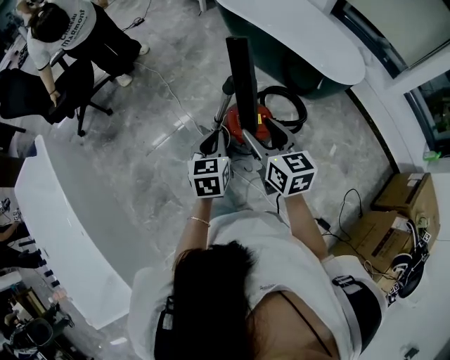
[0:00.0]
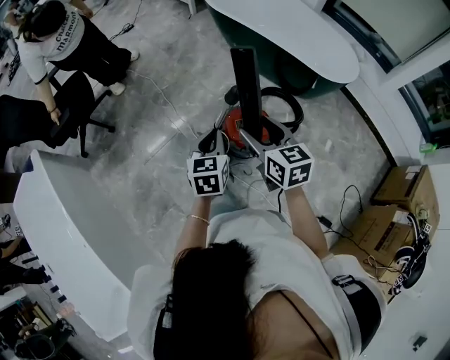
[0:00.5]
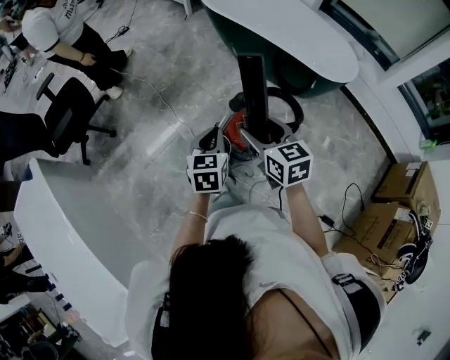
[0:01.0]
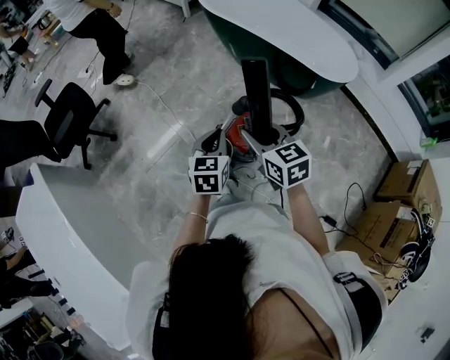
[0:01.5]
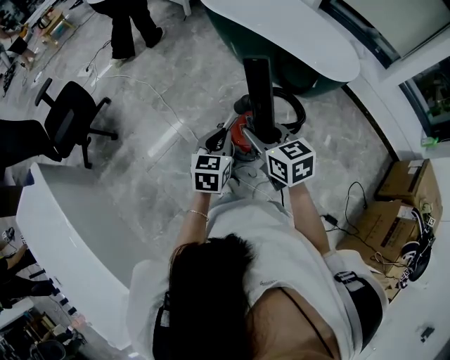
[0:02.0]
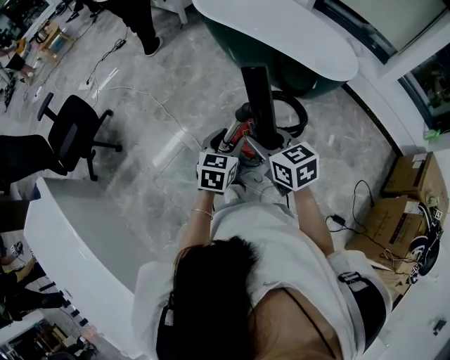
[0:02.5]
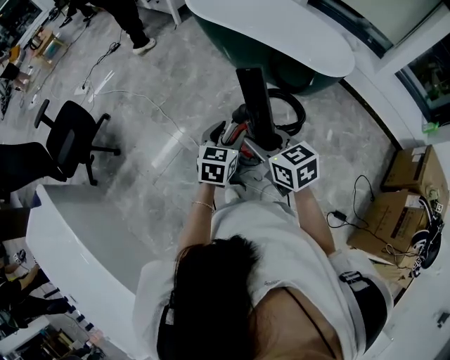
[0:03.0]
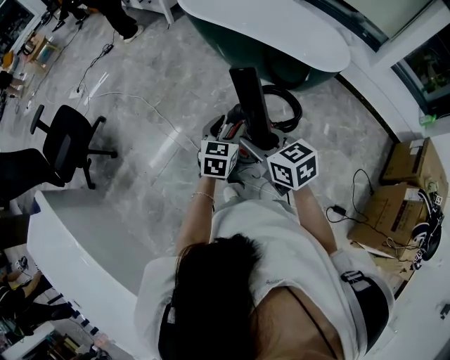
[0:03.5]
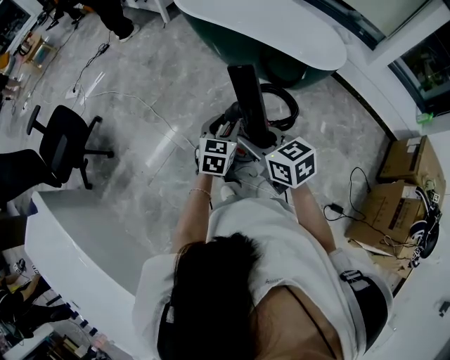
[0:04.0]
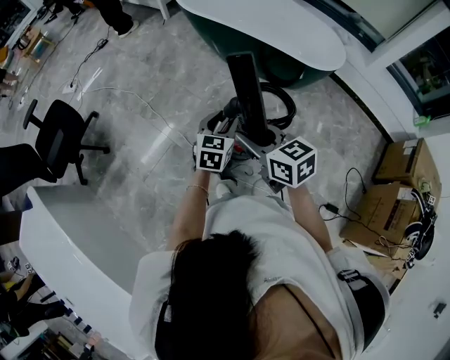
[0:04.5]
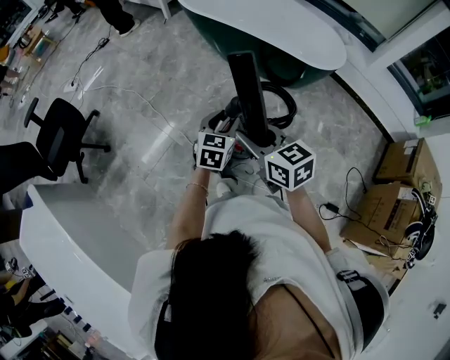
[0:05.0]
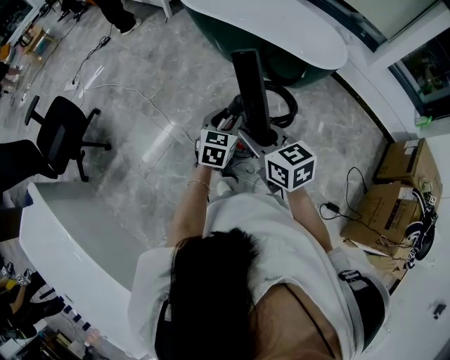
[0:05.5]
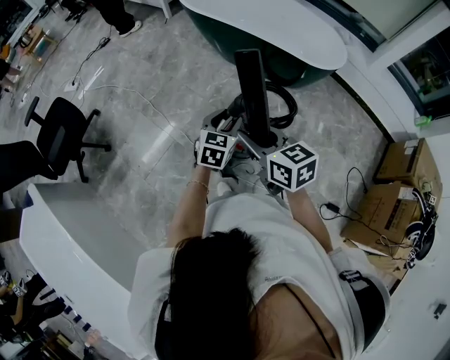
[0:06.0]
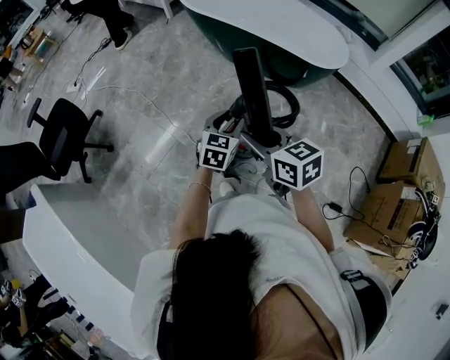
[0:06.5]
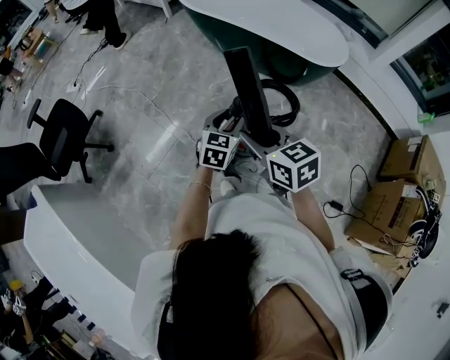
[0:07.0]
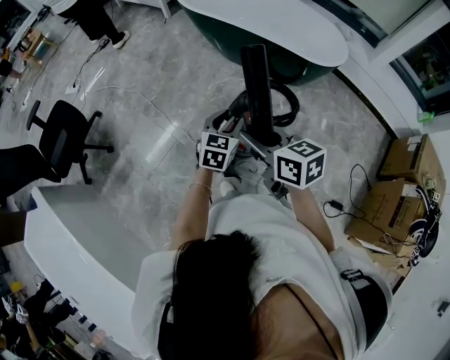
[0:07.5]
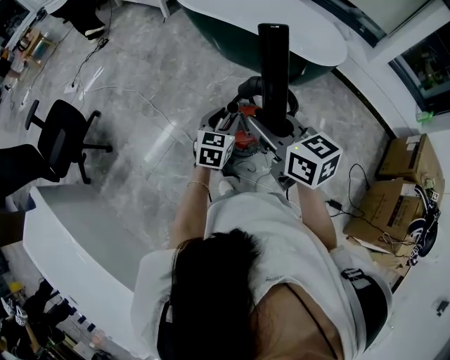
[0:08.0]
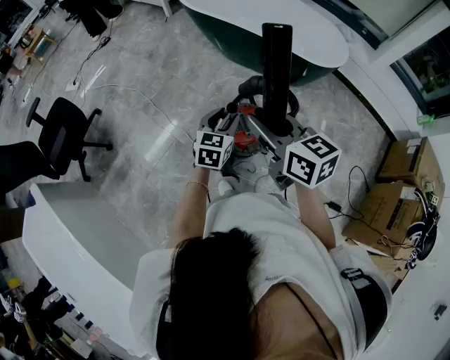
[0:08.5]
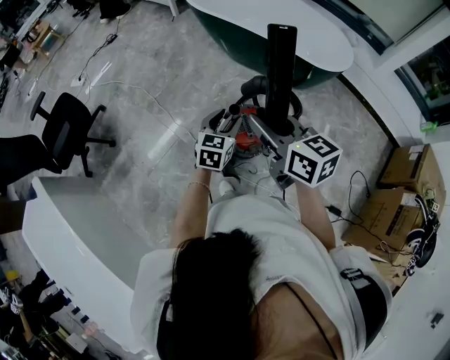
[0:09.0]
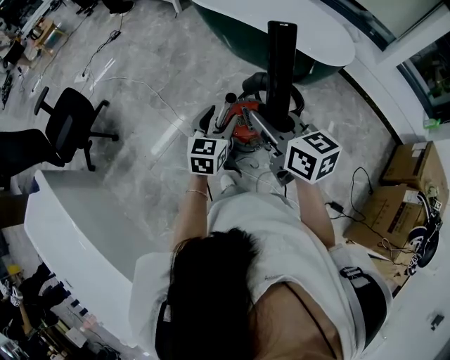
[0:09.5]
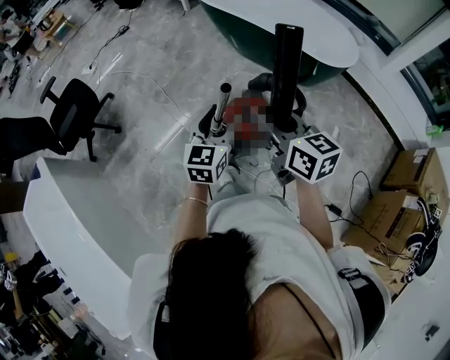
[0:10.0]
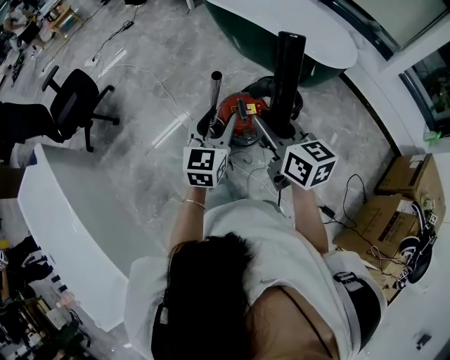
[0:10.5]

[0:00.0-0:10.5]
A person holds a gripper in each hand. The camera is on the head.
0:00.0 to 0:02.0: Both grippers move forward, approximately 5 cm. The right gripper closes its fingers.
0:02.0 to 0:04.0: The left gripper heads forward and to the right, covering approximately 10 cm, and opens its fingers.
0:04.0 to 0:06.5: There are only small adjustments of the grippers.
0:06.5 to 0:08.5: The right gripper heads upward, covering approximately 5 cm.
0:08.5 to 0:10.5: The right gripper heads backward and to the right, covering roughly 15 cm. Meanwhile the left gripper is displaced backward and upward by approximately 20 cm, and changes its angle by approximately 20 degrees.

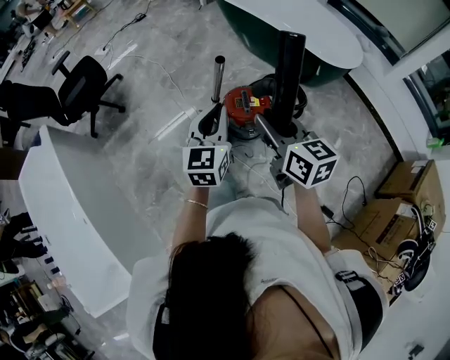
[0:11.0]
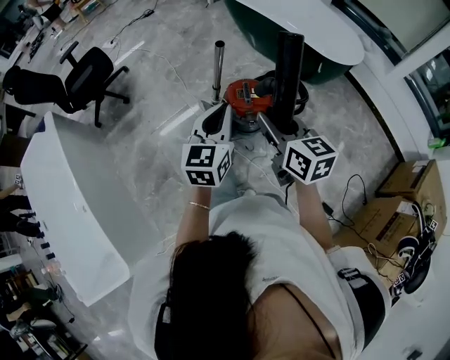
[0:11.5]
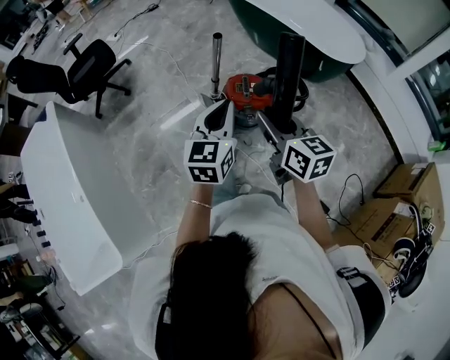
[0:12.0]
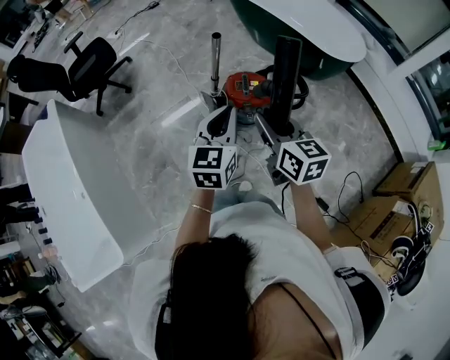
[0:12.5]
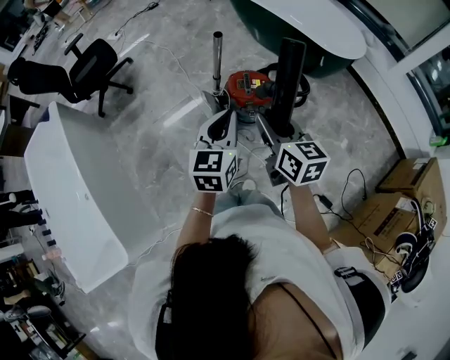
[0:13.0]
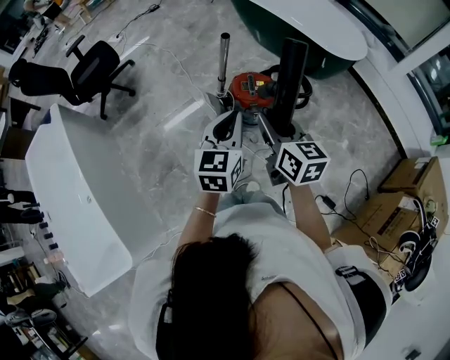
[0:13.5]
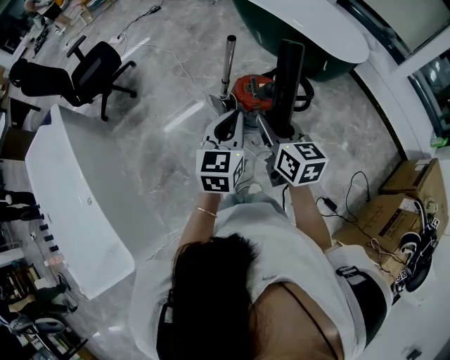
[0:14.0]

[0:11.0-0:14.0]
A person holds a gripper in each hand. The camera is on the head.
0:11.0 to 0:12.5: The two grippers go roughly 10 cm backward.
0:12.5 to 0:14.0: The grippers move only a little.

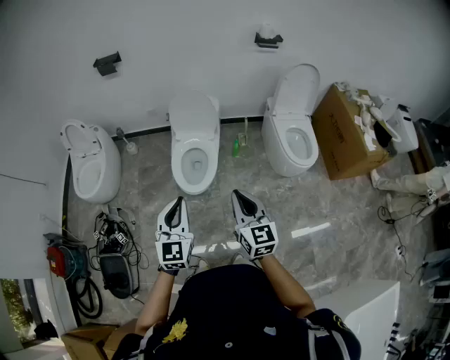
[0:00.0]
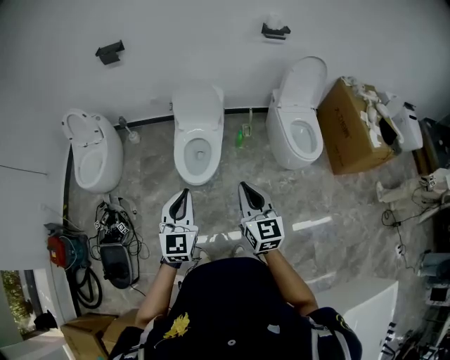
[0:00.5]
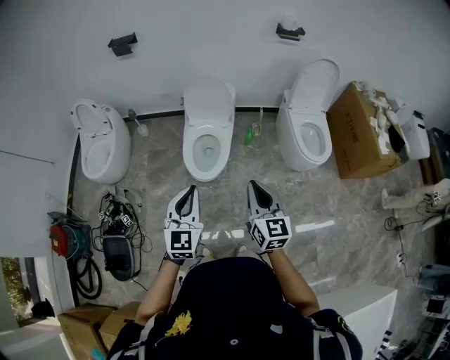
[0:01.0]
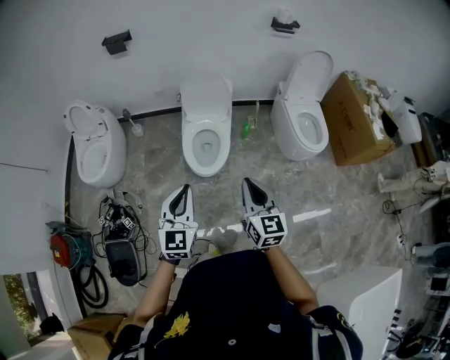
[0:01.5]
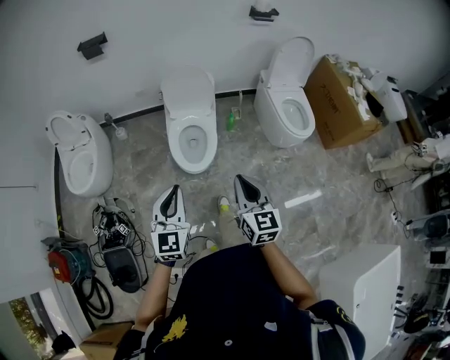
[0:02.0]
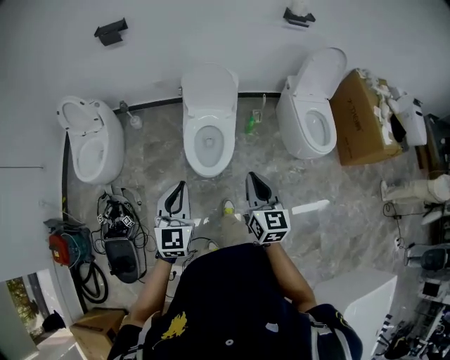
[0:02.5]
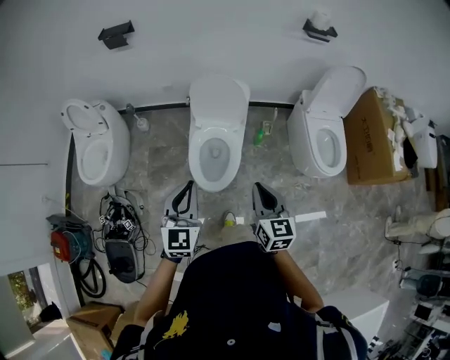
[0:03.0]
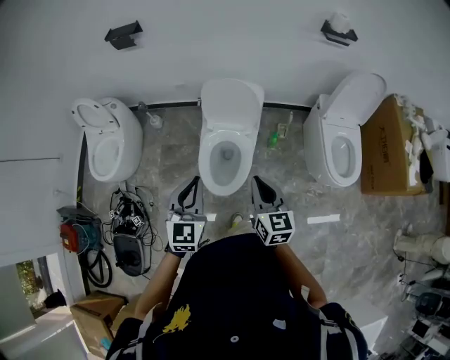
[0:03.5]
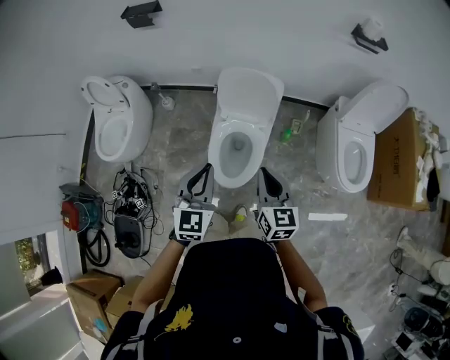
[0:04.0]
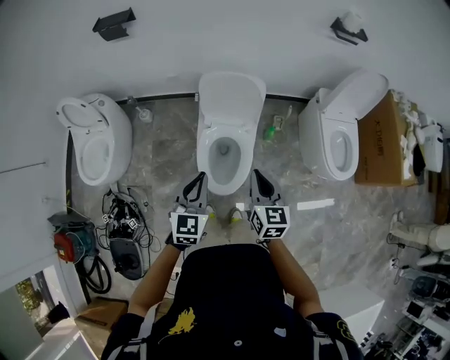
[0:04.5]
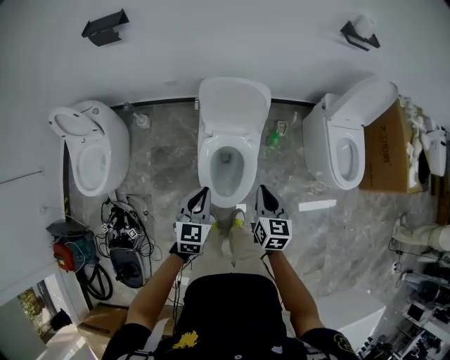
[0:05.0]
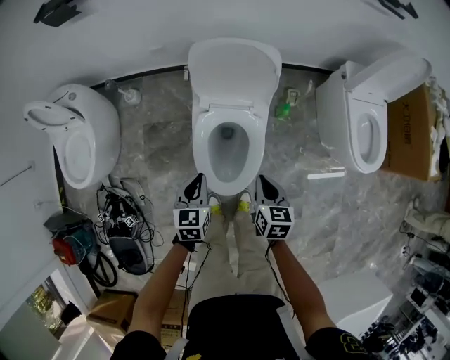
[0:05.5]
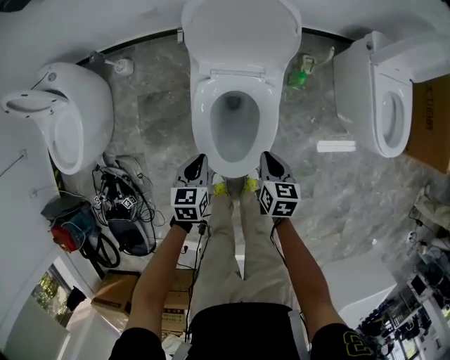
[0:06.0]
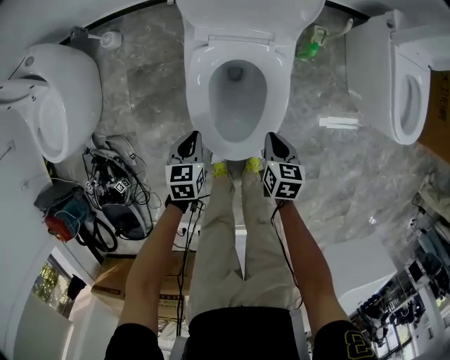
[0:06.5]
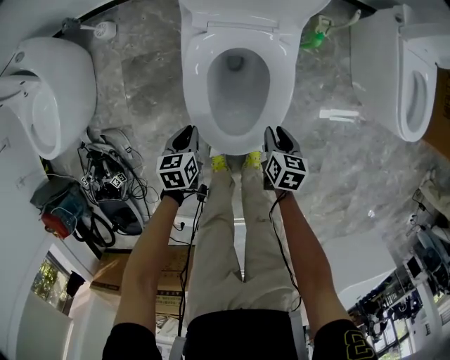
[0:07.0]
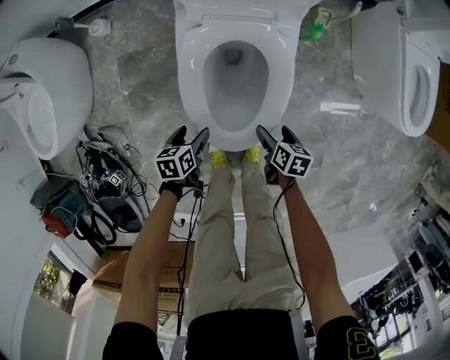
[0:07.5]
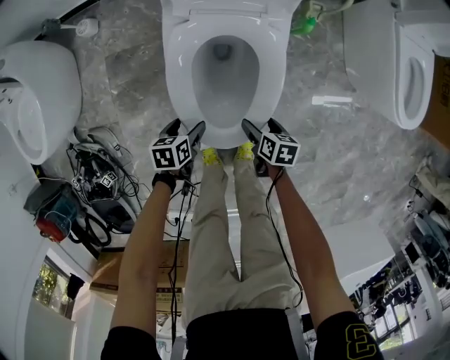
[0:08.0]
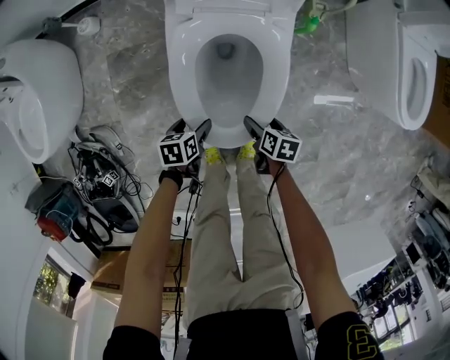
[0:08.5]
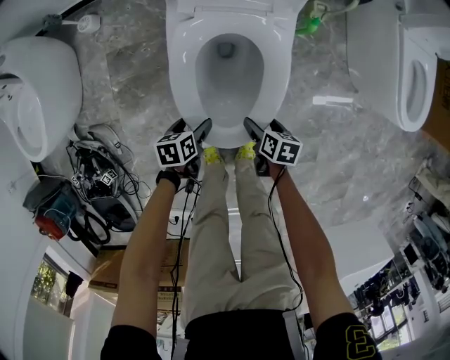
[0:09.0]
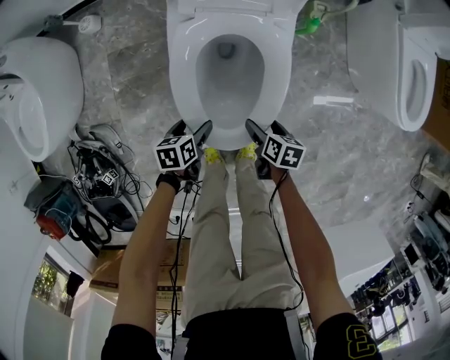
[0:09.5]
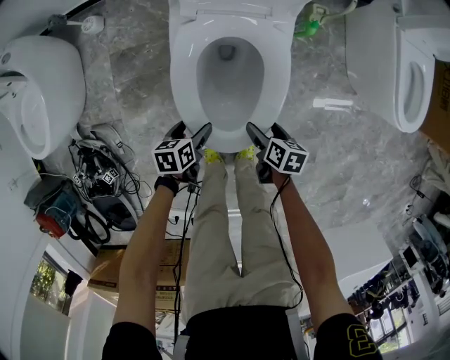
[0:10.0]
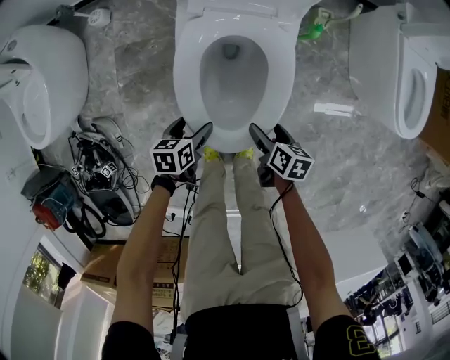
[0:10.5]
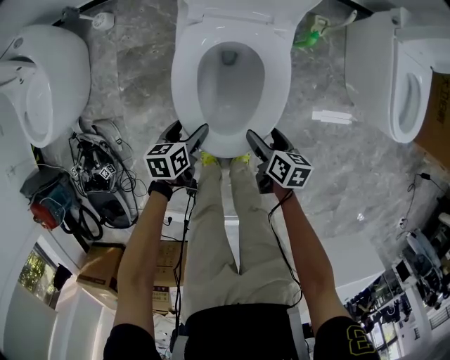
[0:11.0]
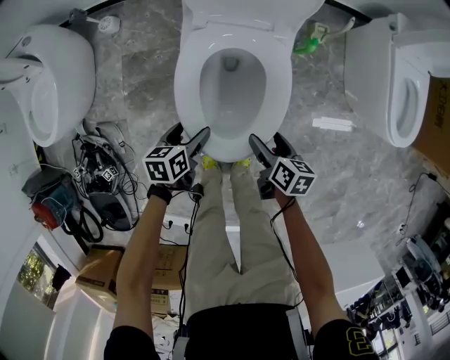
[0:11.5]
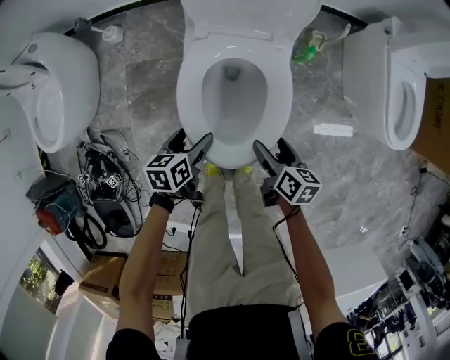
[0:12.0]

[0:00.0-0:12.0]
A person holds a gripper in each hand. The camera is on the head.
0:00.0 to 0:02.0: The grippers both shift to the left by roughly 10 cm.
0:02.0 to 0:04.0: Both grippers move forward, approximately 30 cm.
0:04.0 to 0:06.0: The two grippers go roughly 50 cm downward. The left gripper changes its angle by roughly 40 degrees. Meanwhile the right gripper swivels about 30 degrees.
0:06.0 to 0:08.0: Both grippers travel together downward, some 25 cm. The left gripper turns by approximately 30 degrees, and opens, while the right gripper changes its angle by some 20 degrees, and opens.
0:08.0 to 0:10.0: The grippers stay close to where they were, moving slightly.
0:10.0 to 0:12.0: The two grippers go some 15 cm upward.

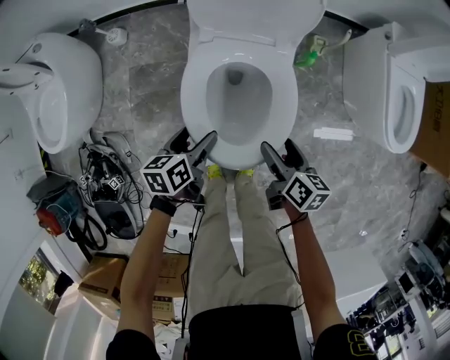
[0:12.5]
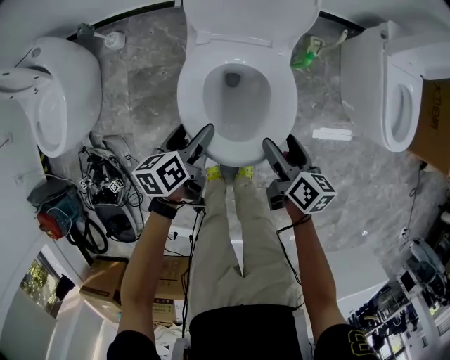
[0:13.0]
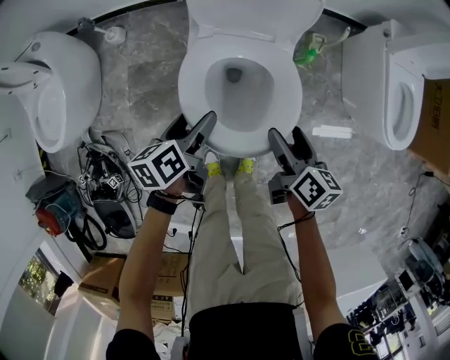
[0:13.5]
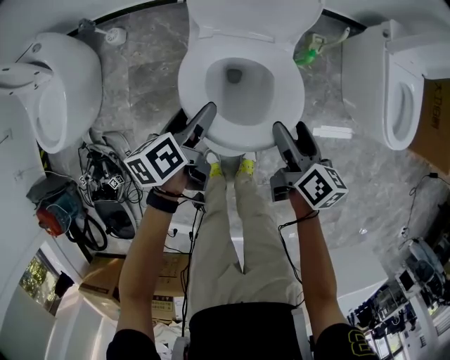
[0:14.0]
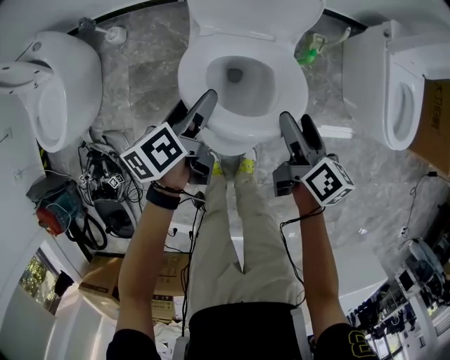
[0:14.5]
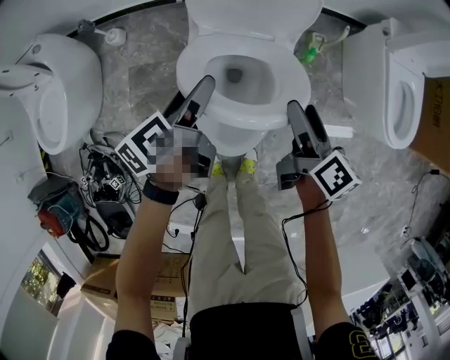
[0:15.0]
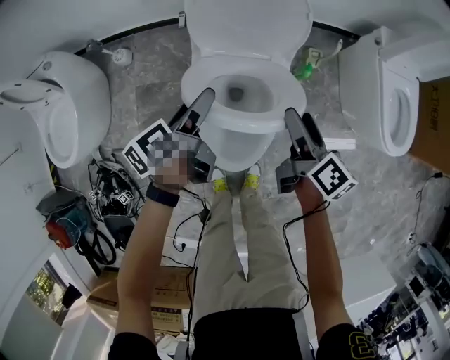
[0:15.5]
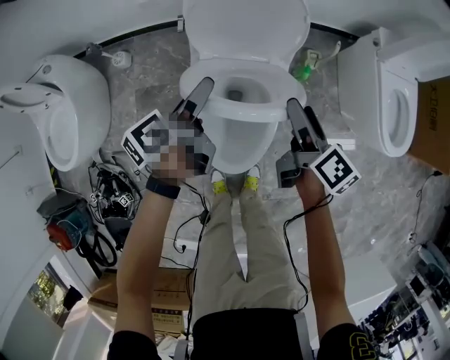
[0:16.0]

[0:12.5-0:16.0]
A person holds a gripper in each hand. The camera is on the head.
0:12.5 to 0:14.5: The grippers both shift upward and forward by about 10 cm. The left gripper rotates some 20 degrees.
0:14.5 to 0:16.0: The grippers both shift forward by roughly 10 cm.
